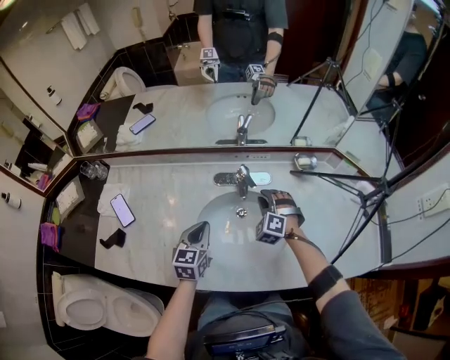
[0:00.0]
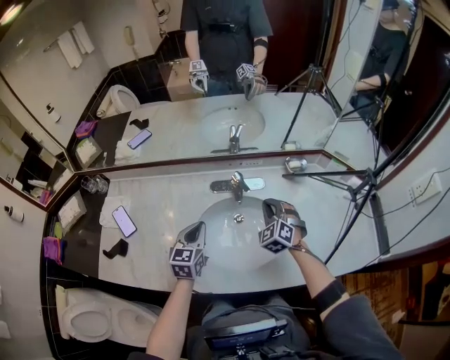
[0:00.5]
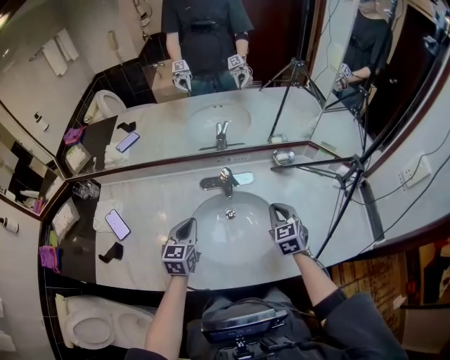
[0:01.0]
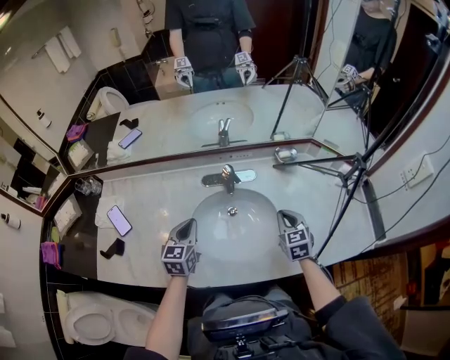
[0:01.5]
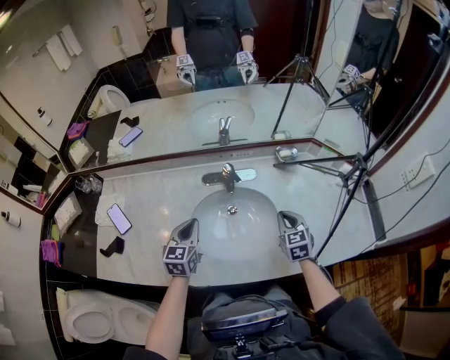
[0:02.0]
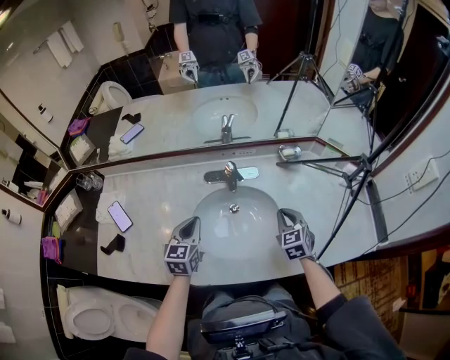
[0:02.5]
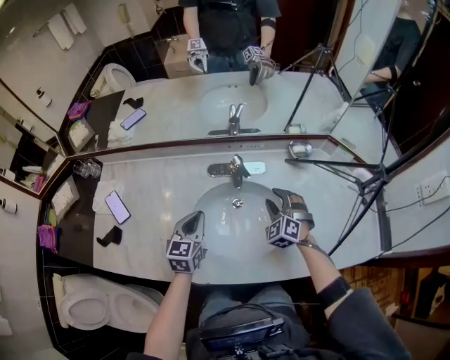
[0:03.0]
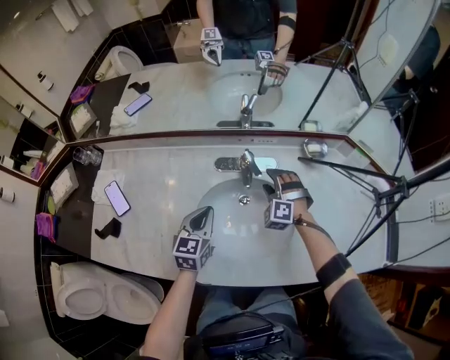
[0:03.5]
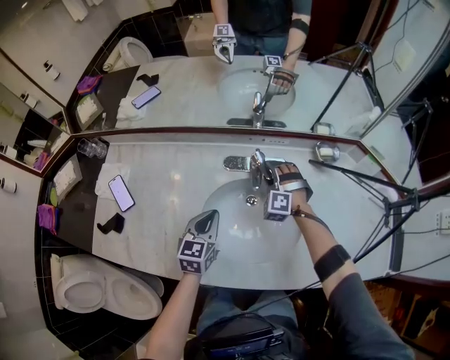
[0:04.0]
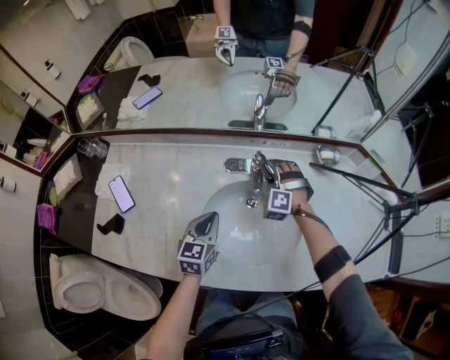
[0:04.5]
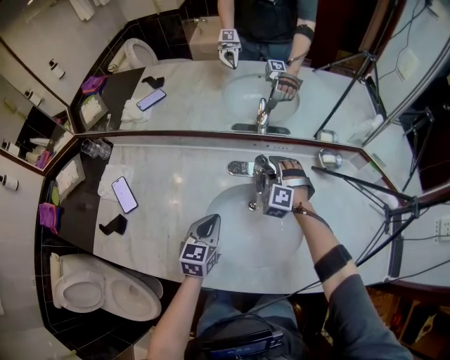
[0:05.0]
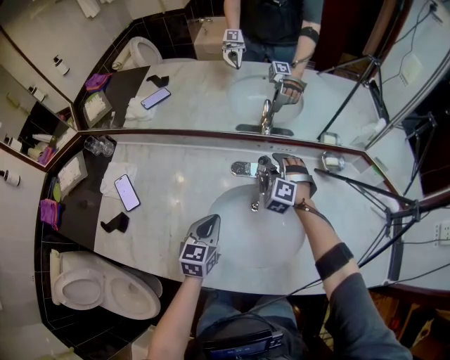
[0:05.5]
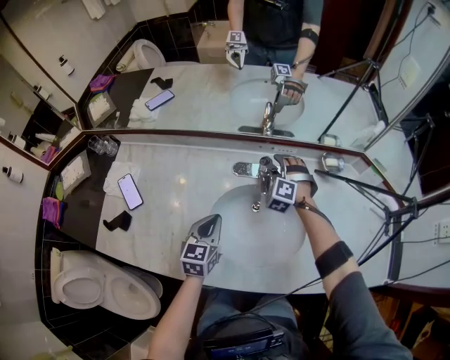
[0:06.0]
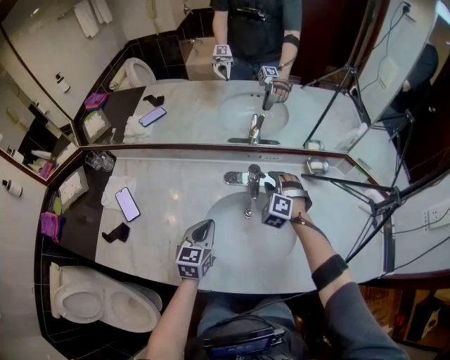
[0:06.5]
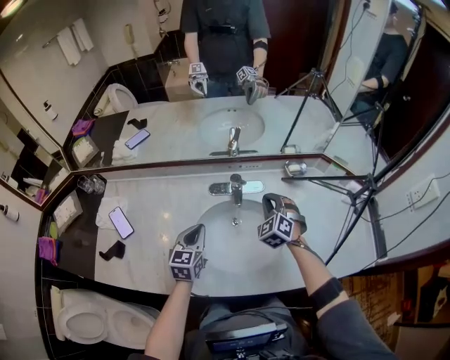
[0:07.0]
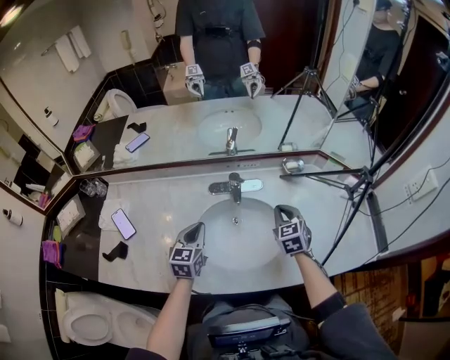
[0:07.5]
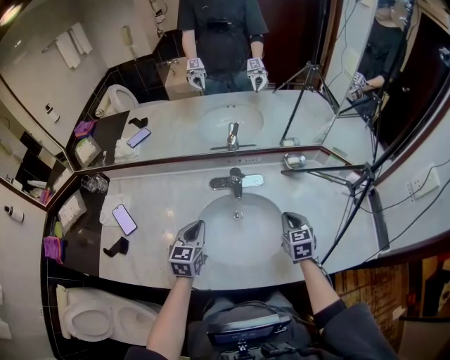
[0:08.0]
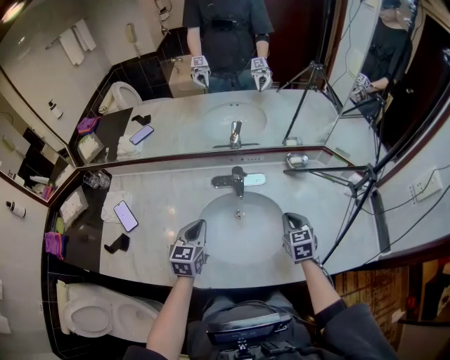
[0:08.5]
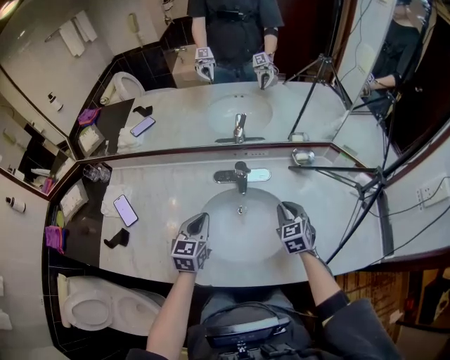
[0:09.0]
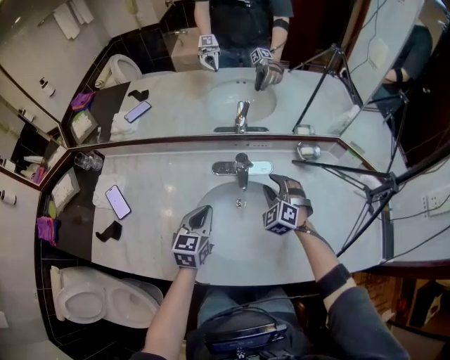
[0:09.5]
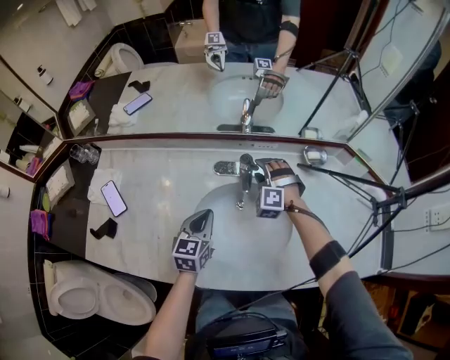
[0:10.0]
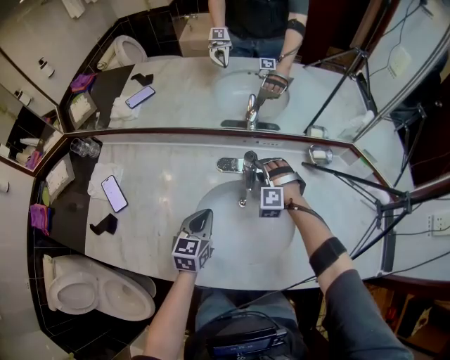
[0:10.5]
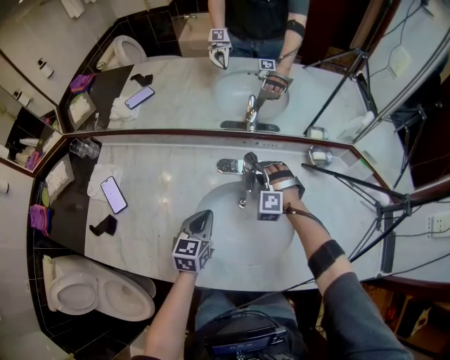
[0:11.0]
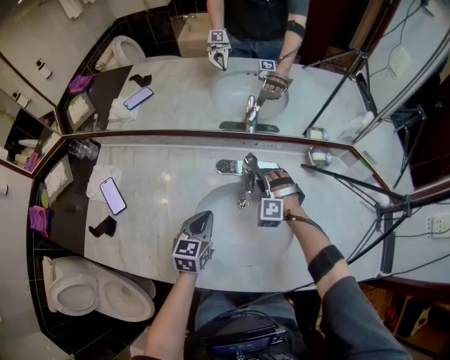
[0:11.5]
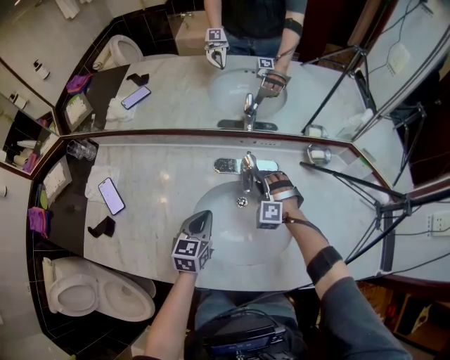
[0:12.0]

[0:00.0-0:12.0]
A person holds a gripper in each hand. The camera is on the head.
0:00.0 to 0:02.0: The right gripper is displaced to the right and backward by some 15 cm, and rolls clockwise, seen from behind, by some 60 degrees.
0:02.0 to 0:04.0: The right gripper is displaced forward, to the left and downward by roughly 25 cm, twists about 70 degrees counterclockwise, seen from behind, and opens, while the left gripper shifts about 5 cm downward.
0:04.0 to 0:06.0: The right gripper ends up about 5 cm from where it was.
0:06.0 to 0:08.0: The left gripper travels upward by roughly 5 cm; the right gripper travels backward and to the right by about 25 cm, twists some 70 degrees clockwise, seen from behind, and closes.
0:08.0 to 0:10.0: The left gripper shifts about 5 cm downward. Meanwhile the right gripper goes some 25 cm forward and to the left, twists about 80 degrees counterclockwise, seen from behind, and opens its fingers.
0:10.0 to 0:12.0: The right gripper changes place by some 5 cm.

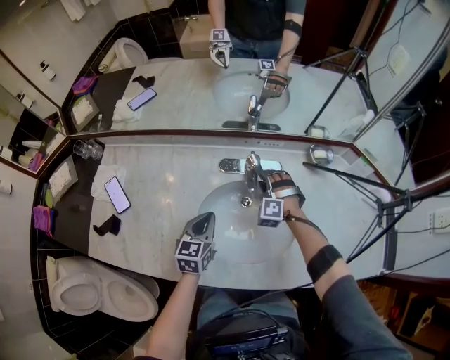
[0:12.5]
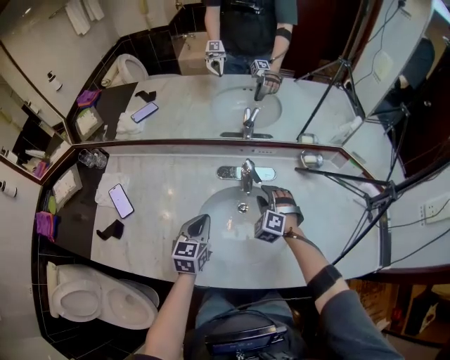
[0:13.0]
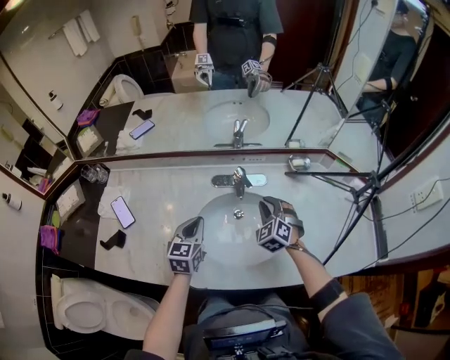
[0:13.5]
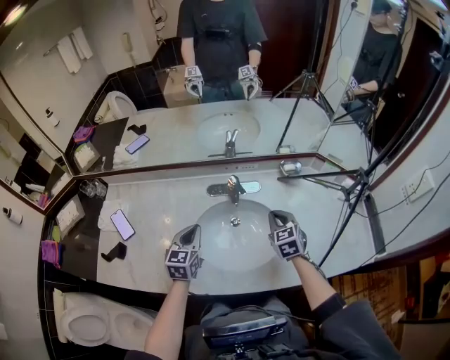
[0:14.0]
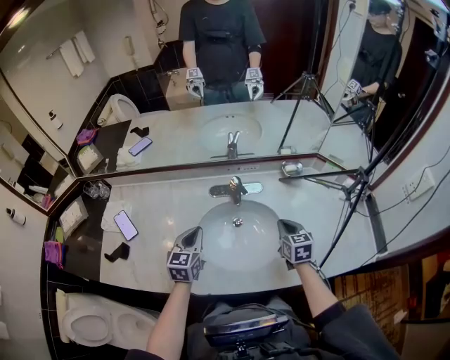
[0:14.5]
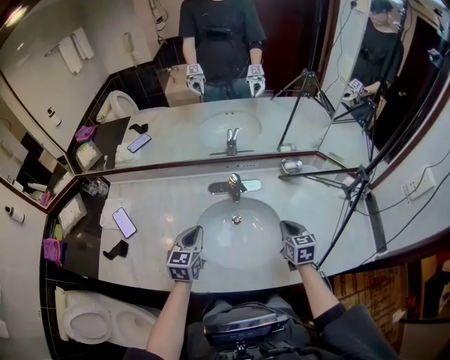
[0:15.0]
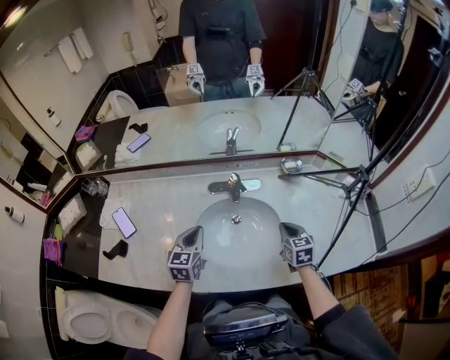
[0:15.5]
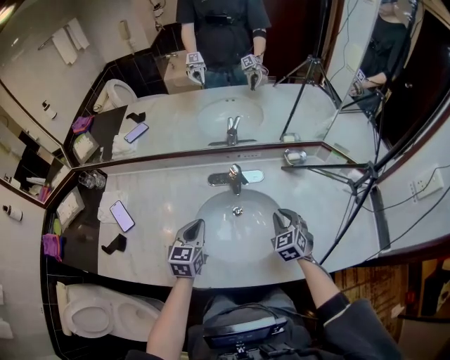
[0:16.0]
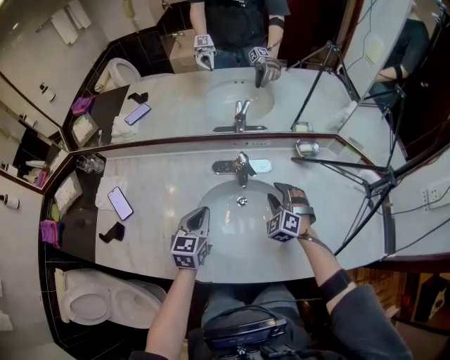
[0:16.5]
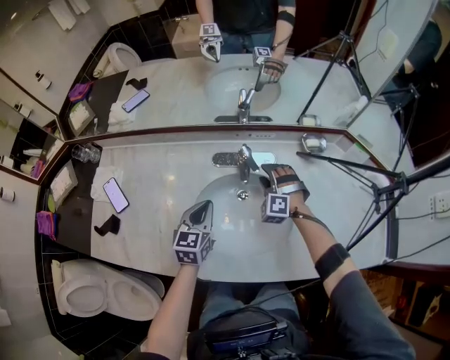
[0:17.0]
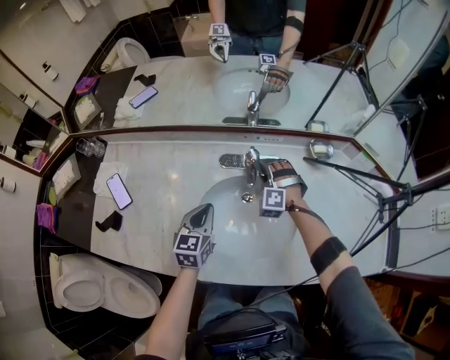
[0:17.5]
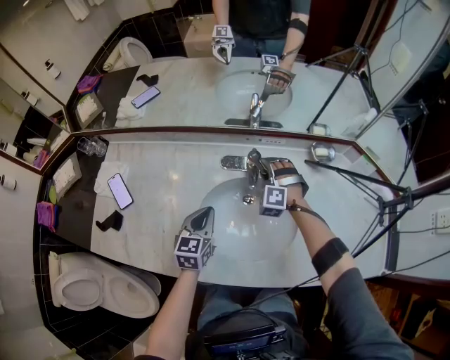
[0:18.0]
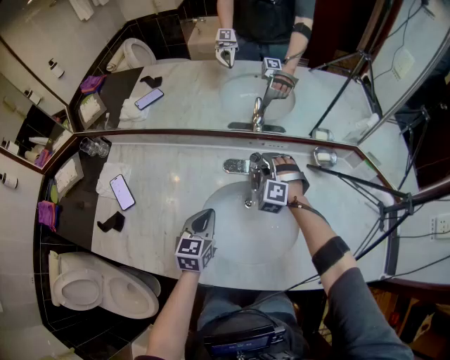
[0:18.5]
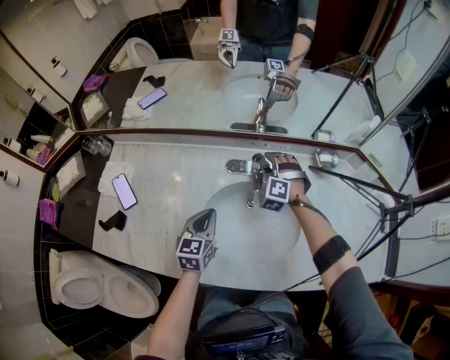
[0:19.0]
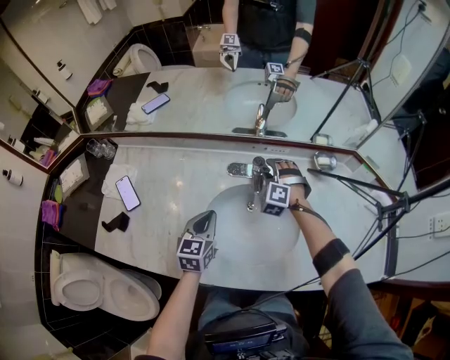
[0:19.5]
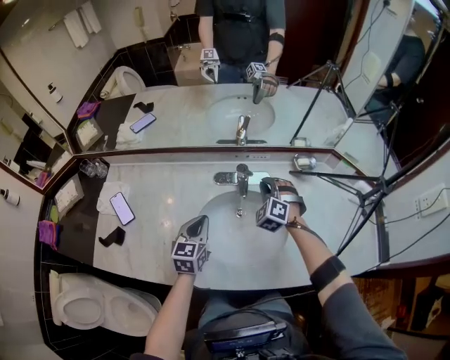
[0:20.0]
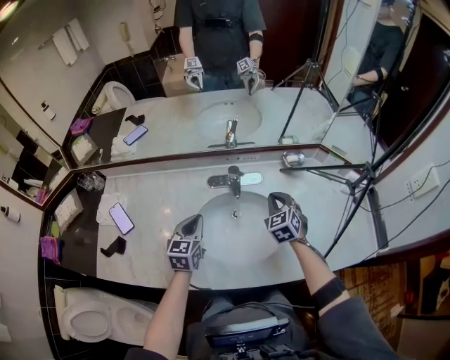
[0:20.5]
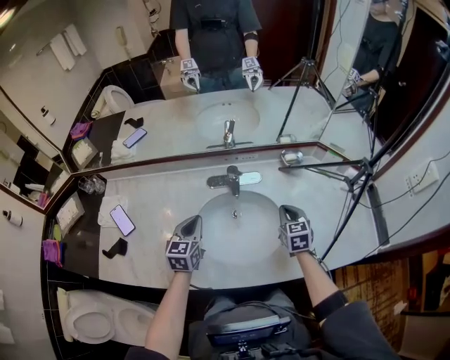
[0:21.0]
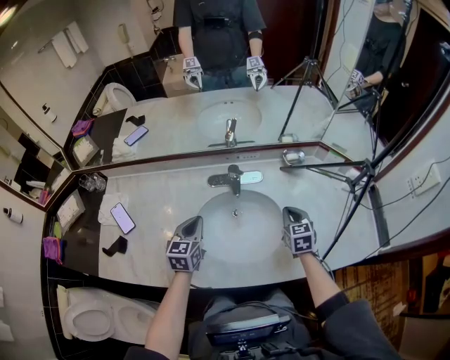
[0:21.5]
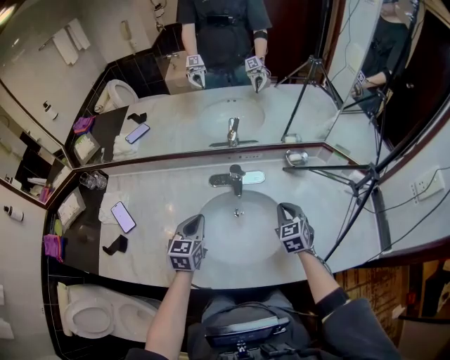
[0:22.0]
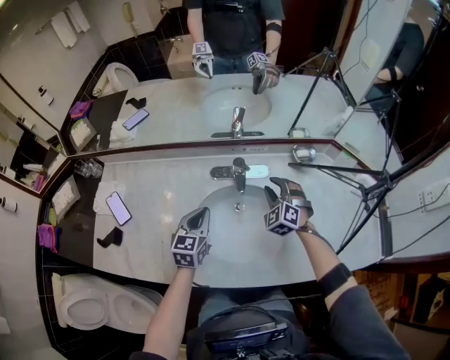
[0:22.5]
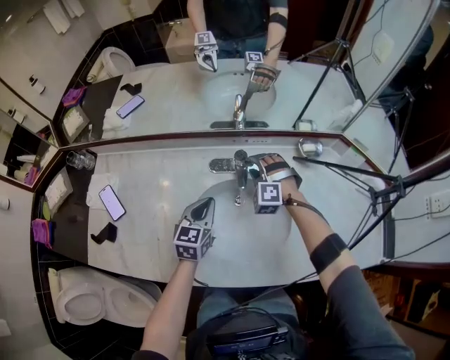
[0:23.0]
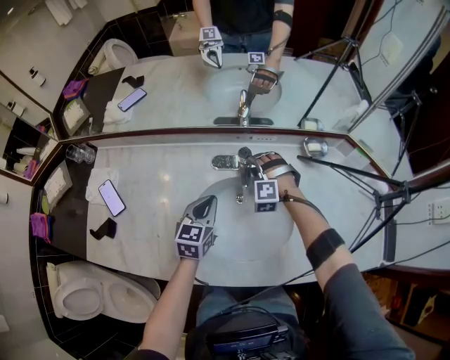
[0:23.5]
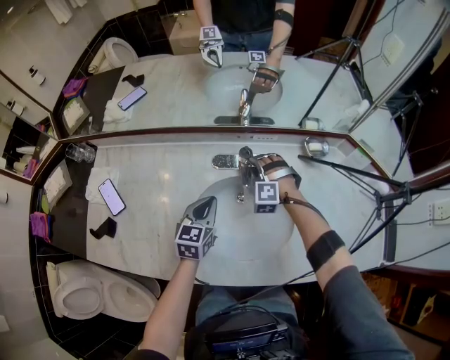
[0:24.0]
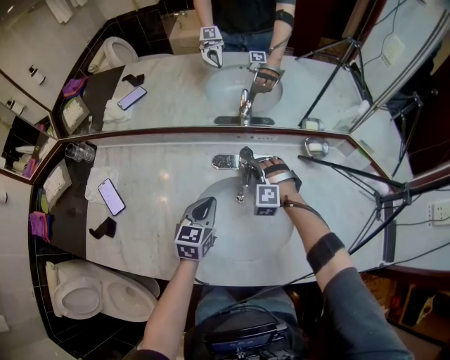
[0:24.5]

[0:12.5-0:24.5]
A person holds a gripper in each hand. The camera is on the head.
0:12.5 to 0:14.5: The right gripper travels backward, to the right and upward by some 25 cm, rotates around the line of its fingers by approximately 90 degrees, clockwise from behind, and closes. Meanwhile the left gripper heads upward, covering some 10 cm.
0:14.5 to 0:16.5: The right gripper goes approximately 10 cm forward and to the left, rotates around the line of its fingers by roughly 60 degrees, counterclockwise from behind, and opens its fingers, while the left gripper shifts by approximately 5 cm.
0:16.5 to 0:18.5: The right gripper travels forward and to the left by roughly 15 cm, and swivels some 20 degrees.
0:18.5 to 0:20.5: The right gripper shifts approximately 20 cm backward, to the right and upward, rotates around the line of its fingers by roughly 50 degrees, clockwise from behind, and closes its fingers. The left gripper is displaced upward by roughly 5 cm.
0:20.5 to 0:22.5: The right gripper heads forward, covering approximately 5 cm, travels to the right and back again, approximately 5 cm each way, rotates roughly 30 degrees, and opens its fingers.
0:22.5 to 0:24.5: The left gripper moves some 5 cm. Meanwhile the right gripper moves to the left, downward and forward, roughly 15 cm, and swivels approximately 30 degrees.

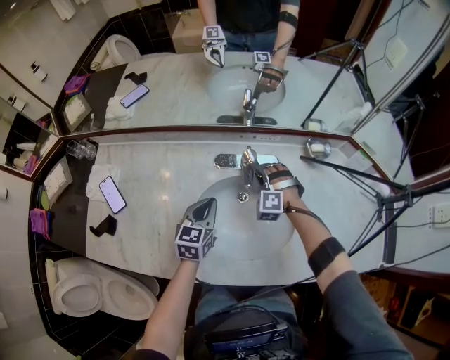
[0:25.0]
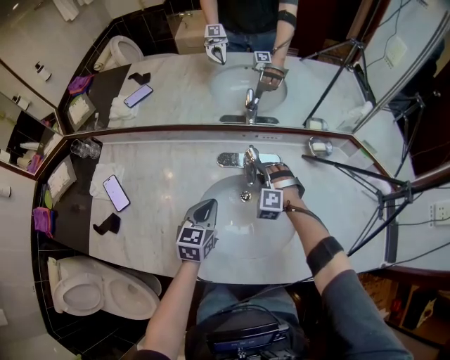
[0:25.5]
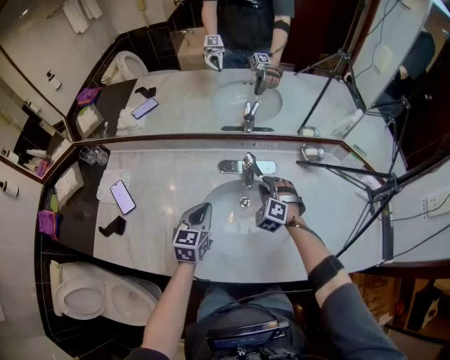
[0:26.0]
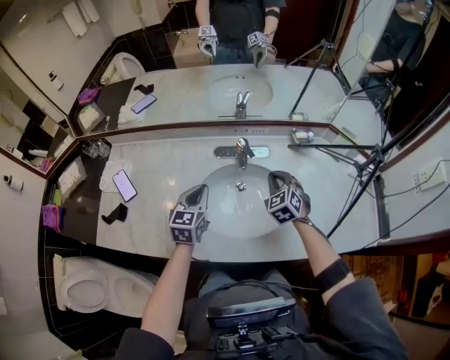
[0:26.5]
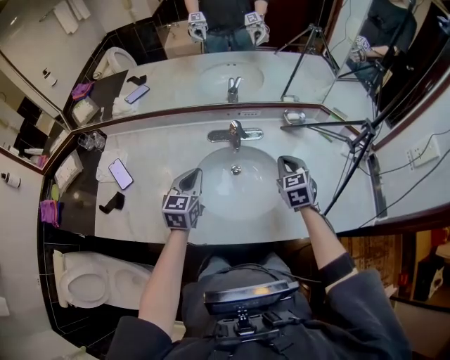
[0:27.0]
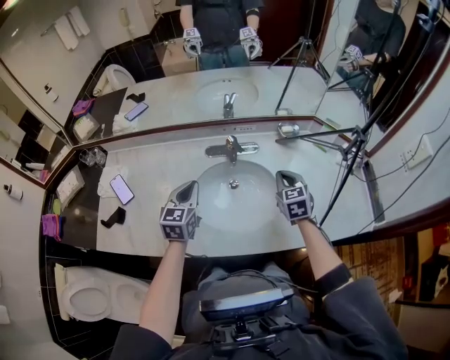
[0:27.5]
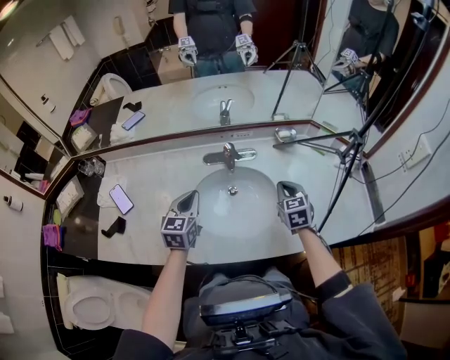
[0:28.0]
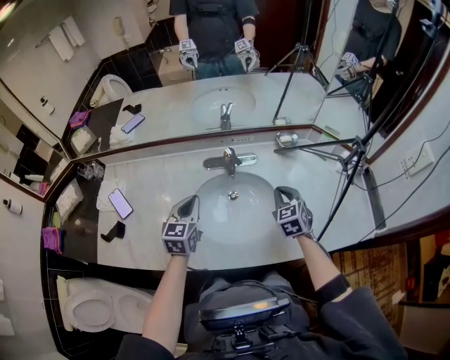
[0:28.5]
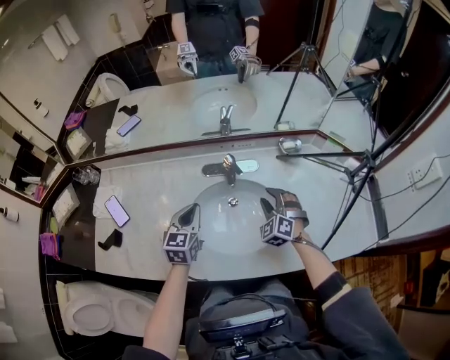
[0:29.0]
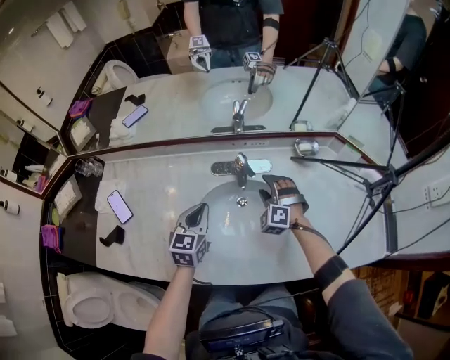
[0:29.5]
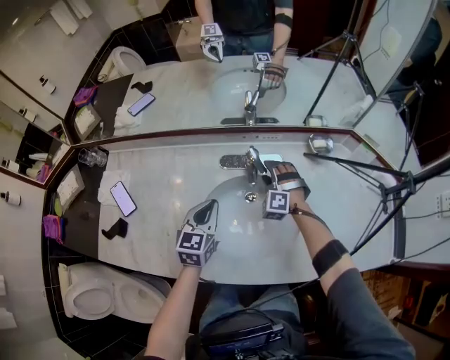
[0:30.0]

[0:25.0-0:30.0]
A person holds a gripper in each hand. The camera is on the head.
0:25.0 to 0:27.5: The right gripper moves backward, upward and to the right, roughly 25 cm, and rolls clockwise, seen from behind, by approximately 70 degrees; the left gripper shifts about 15 cm upward and backward.
0:27.5 to 0:30.0: The left gripper goes about 10 cm forward and downward. Meanwhile the right gripper shifts approximately 25 cm forward, downward and to the left, rolls counterclockwise, seen from behind, by approximately 70 degrees, and opens up.
